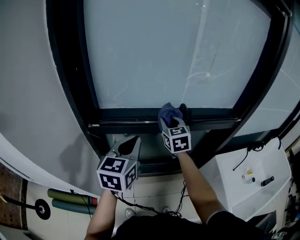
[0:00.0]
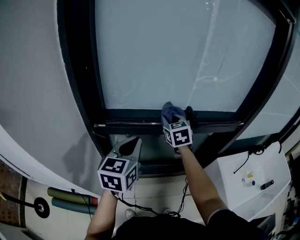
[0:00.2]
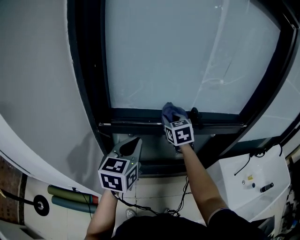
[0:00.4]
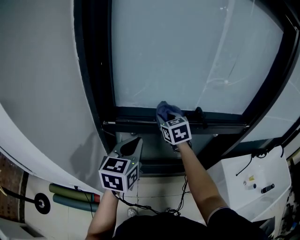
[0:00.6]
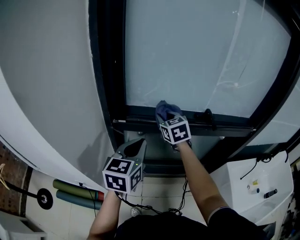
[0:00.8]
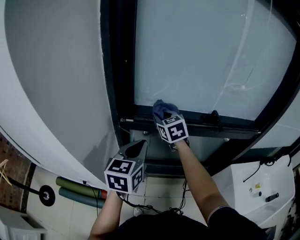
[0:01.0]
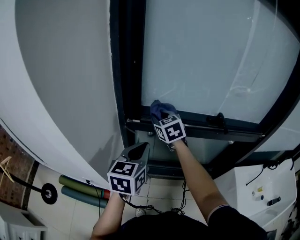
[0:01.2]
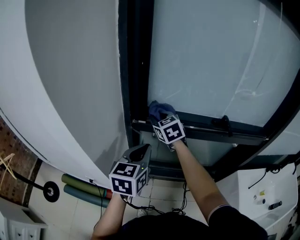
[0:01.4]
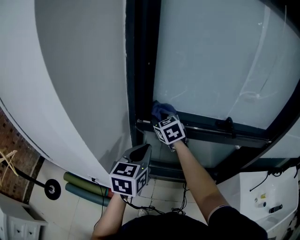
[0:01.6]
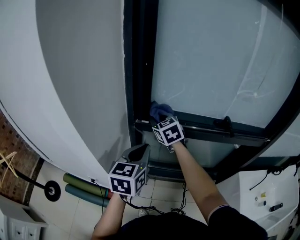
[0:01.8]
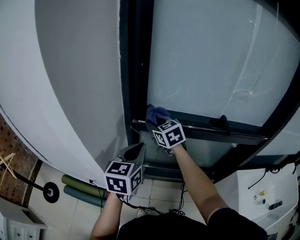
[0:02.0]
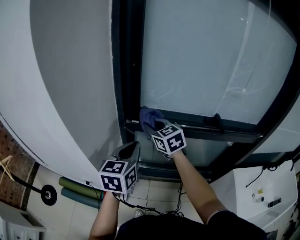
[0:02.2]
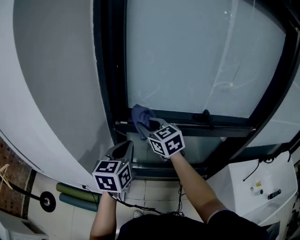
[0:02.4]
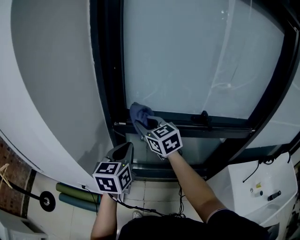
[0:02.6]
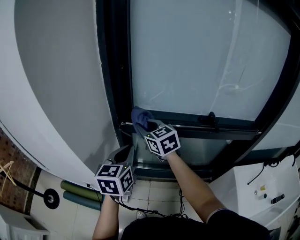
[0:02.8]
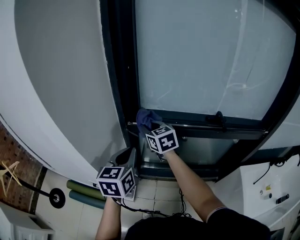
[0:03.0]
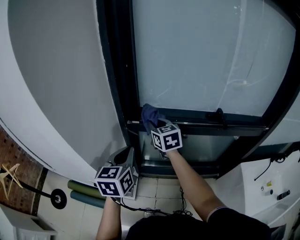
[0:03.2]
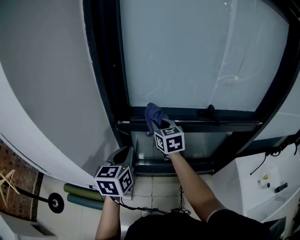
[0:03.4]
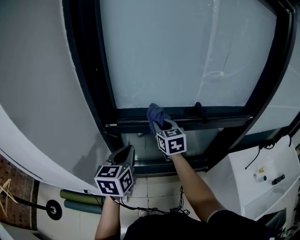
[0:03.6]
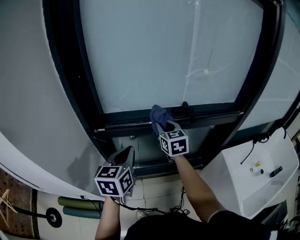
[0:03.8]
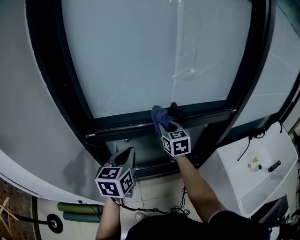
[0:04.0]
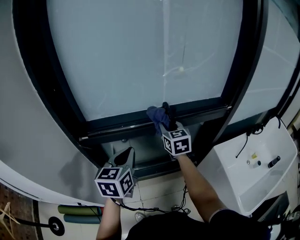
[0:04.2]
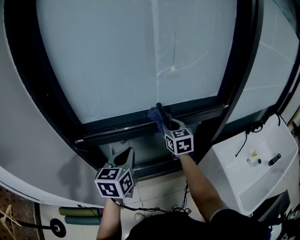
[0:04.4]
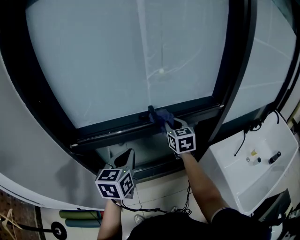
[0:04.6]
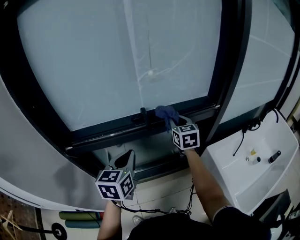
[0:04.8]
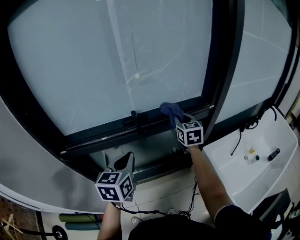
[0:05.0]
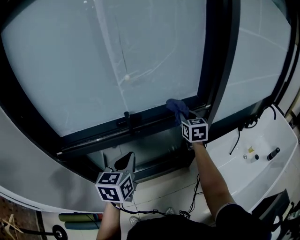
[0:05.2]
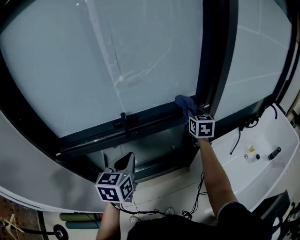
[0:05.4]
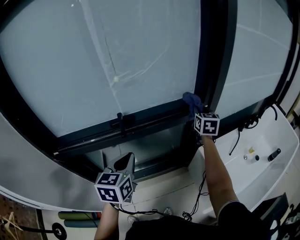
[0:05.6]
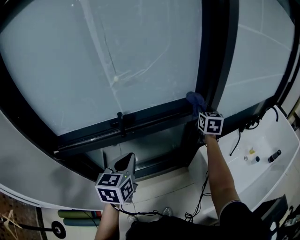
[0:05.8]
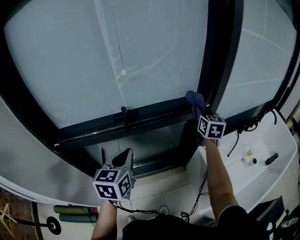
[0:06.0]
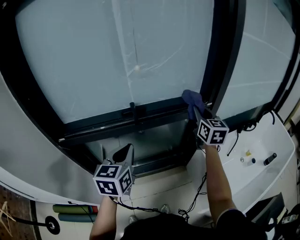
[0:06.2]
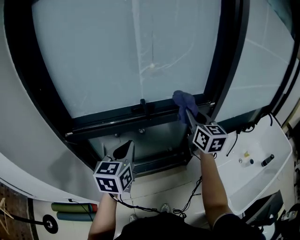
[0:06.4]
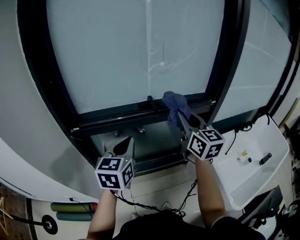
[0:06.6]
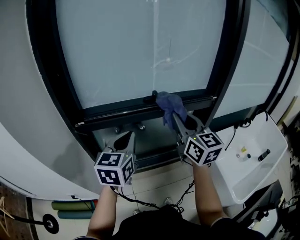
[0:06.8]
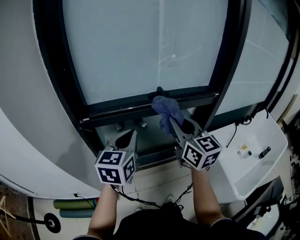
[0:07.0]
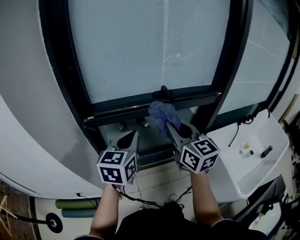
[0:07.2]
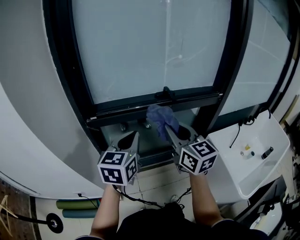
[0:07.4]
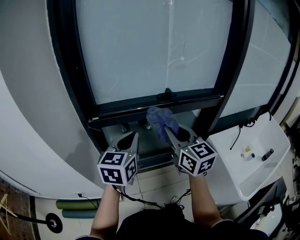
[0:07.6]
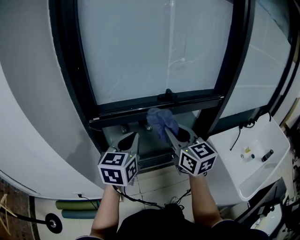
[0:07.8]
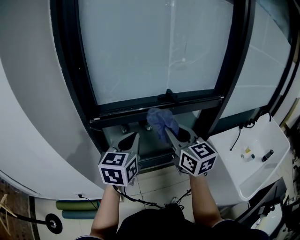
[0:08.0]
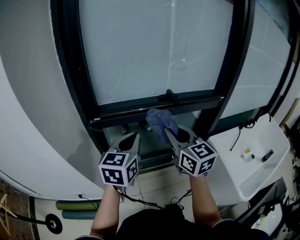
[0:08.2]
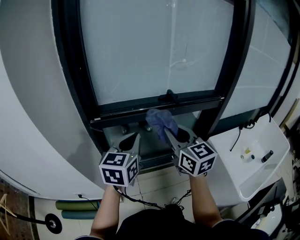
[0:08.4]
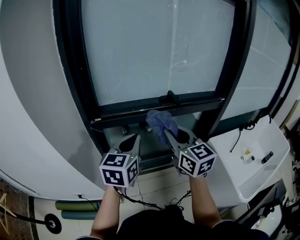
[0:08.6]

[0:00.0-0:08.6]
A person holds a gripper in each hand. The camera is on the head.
0:00.0 to 0:01.4: The right gripper moves to the left, roughly 25 cm, and turns by roughly 30 degrees; the left gripper heads to the left, covering roughly 15 cm.
0:01.4 to 0:02.8: The right gripper moves backward, some 5 cm.
0:02.8 to 0:04.4: The left gripper shifts by approximately 20 cm. Meanwhile the right gripper moves about 35 cm, and rotates approximately 40 degrees.
0:04.4 to 0:05.8: The right gripper heads to the right, covering some 35 cm, and swivels some 20 degrees; the left gripper is displaced to the right by some 15 cm.
0:05.8 to 0:07.2: The left gripper goes approximately 20 cm to the left and backward, while the right gripper heads to the left and backward, covering approximately 50 cm, and changes its angle by approximately 30 degrees.
0:07.2 to 0:08.6: The grippers stay close to where they were, moving slightly.

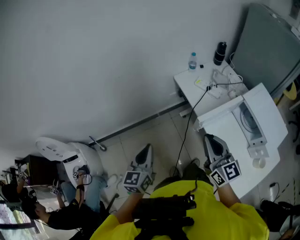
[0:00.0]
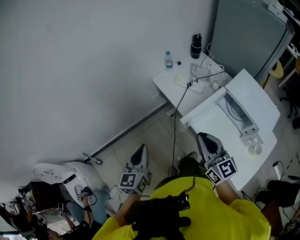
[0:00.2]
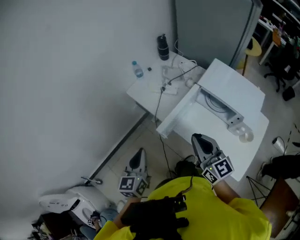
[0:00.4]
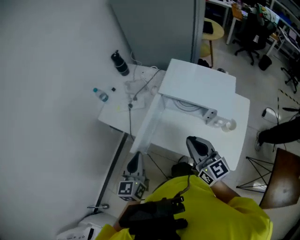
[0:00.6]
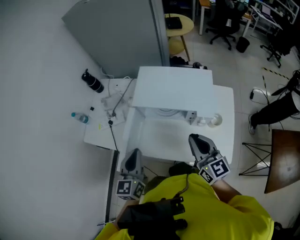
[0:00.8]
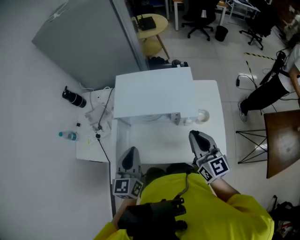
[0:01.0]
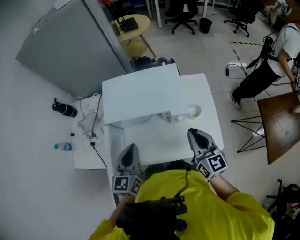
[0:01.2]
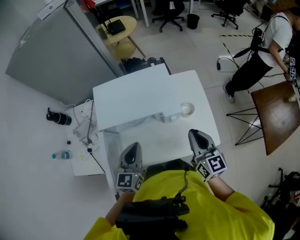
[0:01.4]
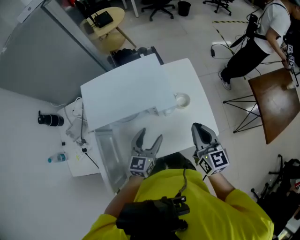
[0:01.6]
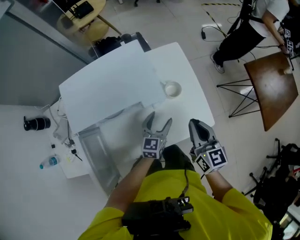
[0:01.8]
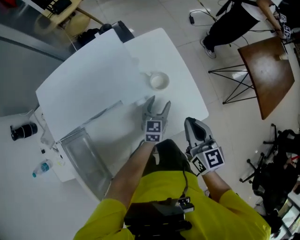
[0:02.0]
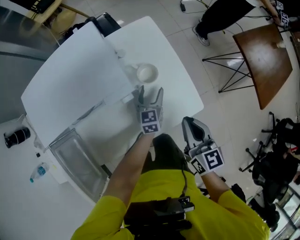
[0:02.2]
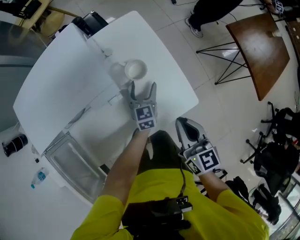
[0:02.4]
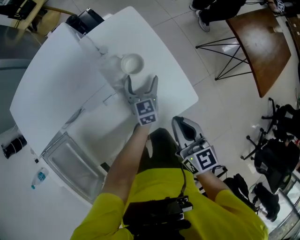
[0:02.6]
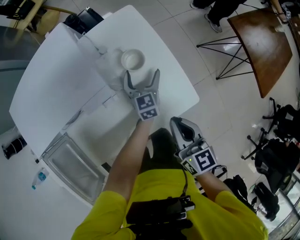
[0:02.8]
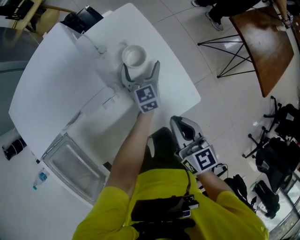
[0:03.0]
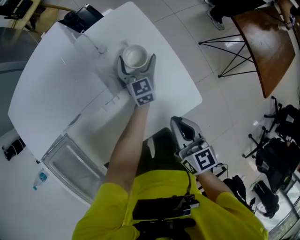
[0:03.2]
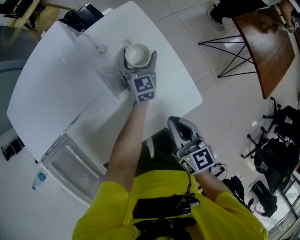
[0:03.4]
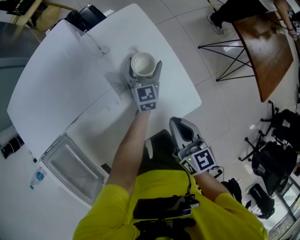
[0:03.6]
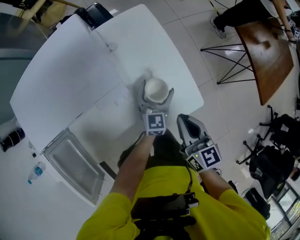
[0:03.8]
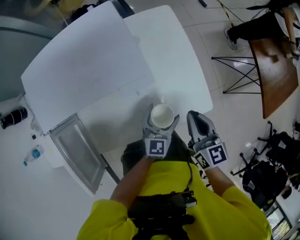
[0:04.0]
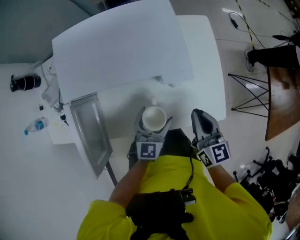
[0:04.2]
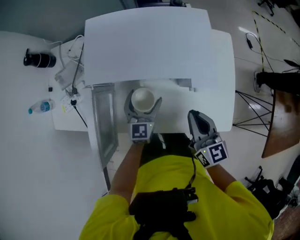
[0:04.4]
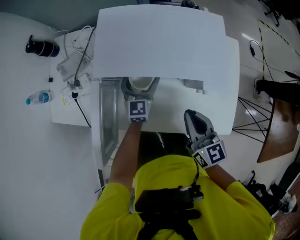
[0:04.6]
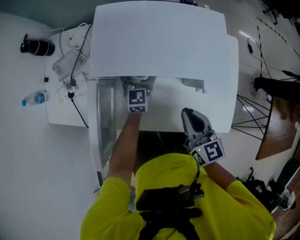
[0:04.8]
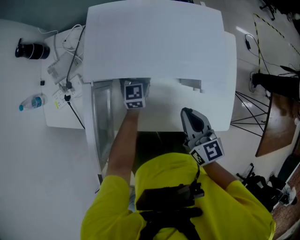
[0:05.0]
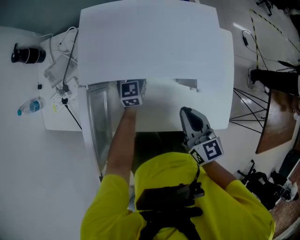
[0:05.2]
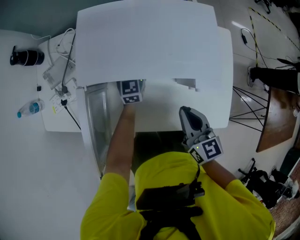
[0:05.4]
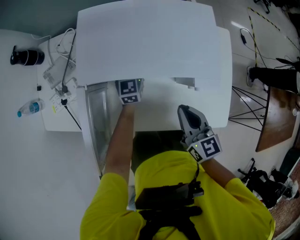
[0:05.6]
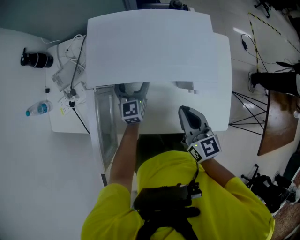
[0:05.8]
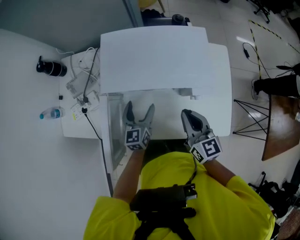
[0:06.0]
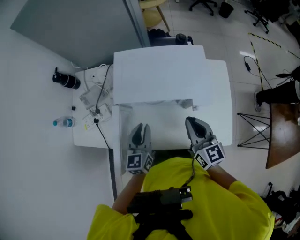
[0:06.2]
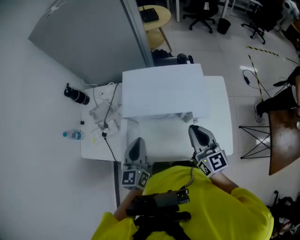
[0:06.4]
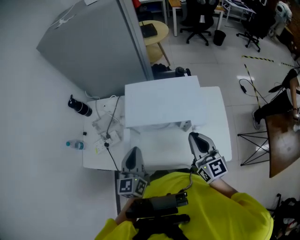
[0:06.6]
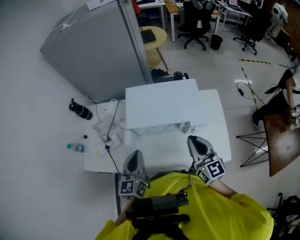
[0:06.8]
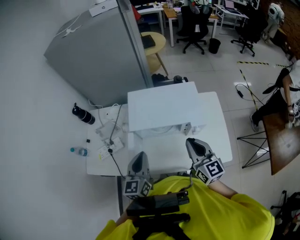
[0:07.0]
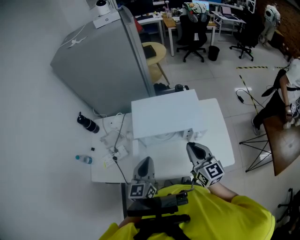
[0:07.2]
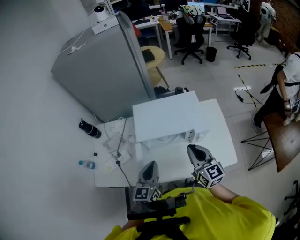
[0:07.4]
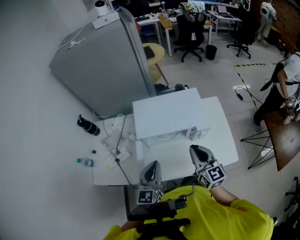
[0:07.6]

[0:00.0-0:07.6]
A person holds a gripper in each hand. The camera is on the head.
0:00.0 to 0:01.6: The two grippers travel together, about 50 cm. The right gripper changes its angle by approximately 80 degrees; the left gripper swivels about 90 degrees, and opens.
0:01.6 to 0:03.0: The right gripper heads downward and to the right, covering approximately 20 cm. Meanwhile the left gripper heads downward, forward and to the right, covering roughly 35 cm, and opens its fingers.
0:03.0 to 0:04.6: The right gripper changes place by some 25 cm, and rotates roughly 30 degrees, while the left gripper changes place by roughly 40 cm, and swivels approximately 20 degrees.
0:04.6 to 0:06.0: The left gripper travels backward by roughly 5 cm.
0:06.0 to 0:07.6: The left gripper shifts roughly 25 cm upward and backward, and closes; the right gripper heads upward, covering some 15 cm.

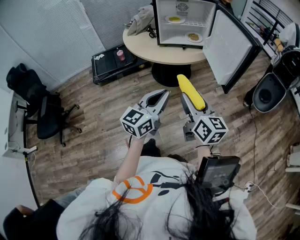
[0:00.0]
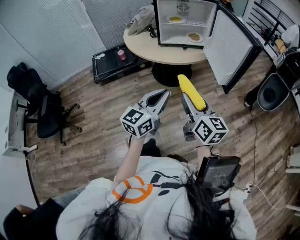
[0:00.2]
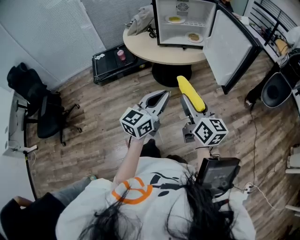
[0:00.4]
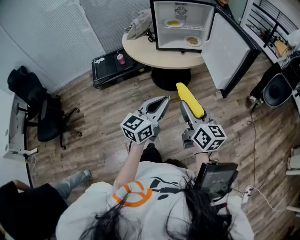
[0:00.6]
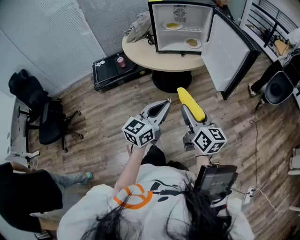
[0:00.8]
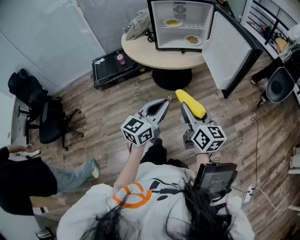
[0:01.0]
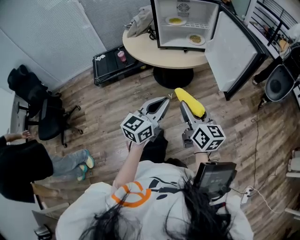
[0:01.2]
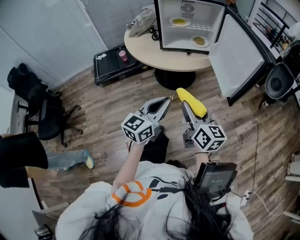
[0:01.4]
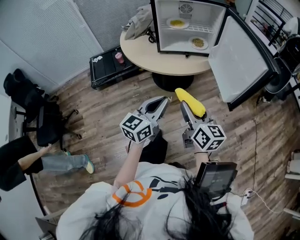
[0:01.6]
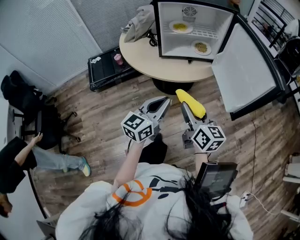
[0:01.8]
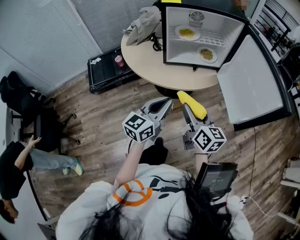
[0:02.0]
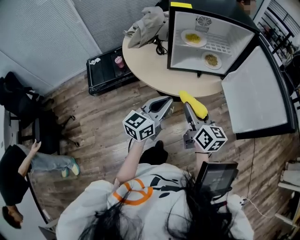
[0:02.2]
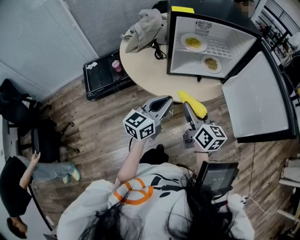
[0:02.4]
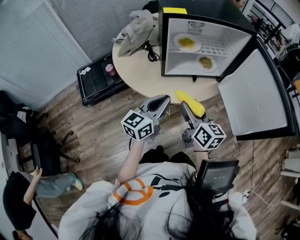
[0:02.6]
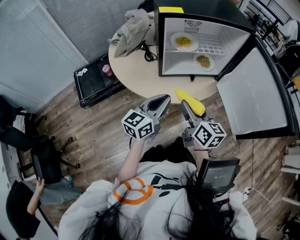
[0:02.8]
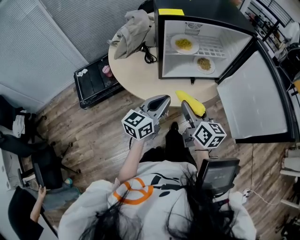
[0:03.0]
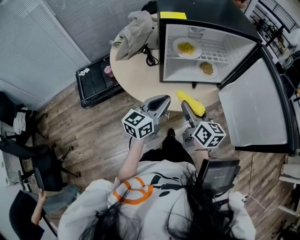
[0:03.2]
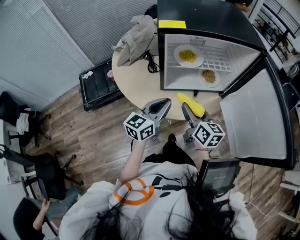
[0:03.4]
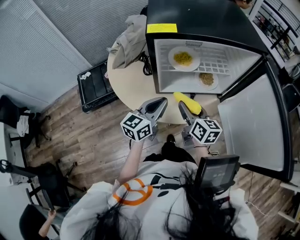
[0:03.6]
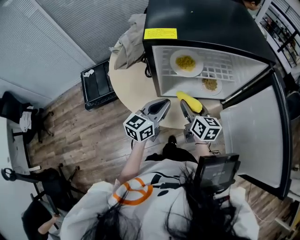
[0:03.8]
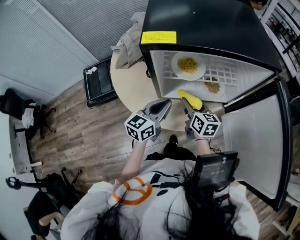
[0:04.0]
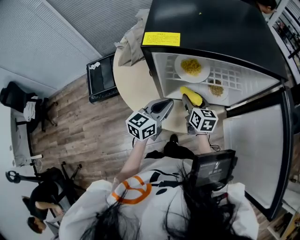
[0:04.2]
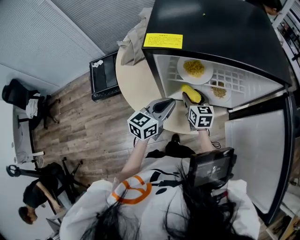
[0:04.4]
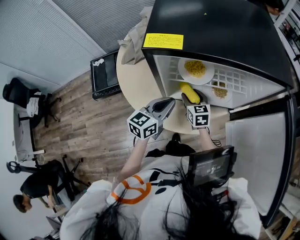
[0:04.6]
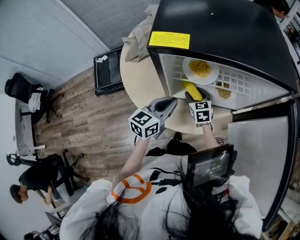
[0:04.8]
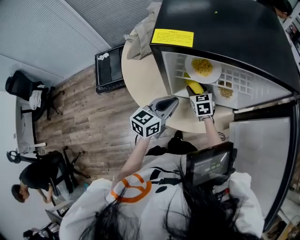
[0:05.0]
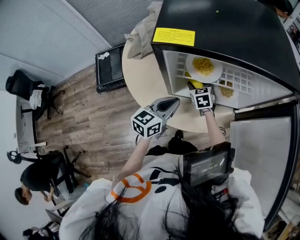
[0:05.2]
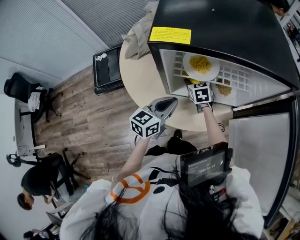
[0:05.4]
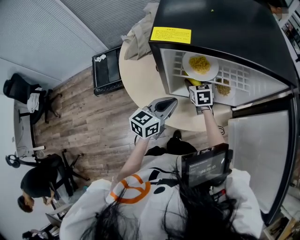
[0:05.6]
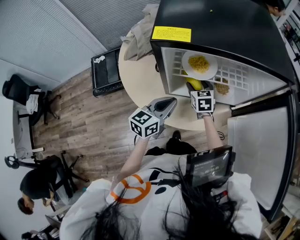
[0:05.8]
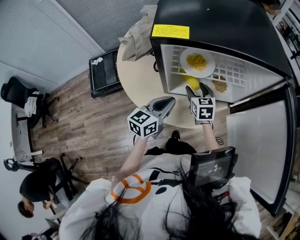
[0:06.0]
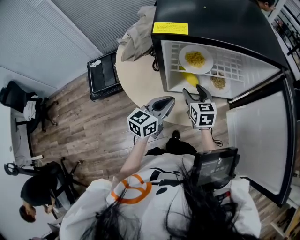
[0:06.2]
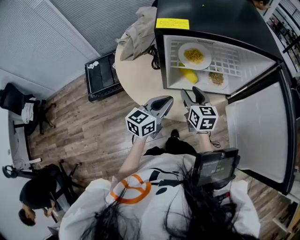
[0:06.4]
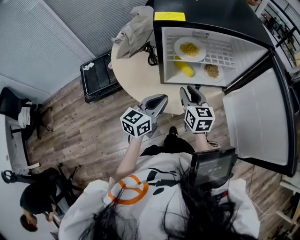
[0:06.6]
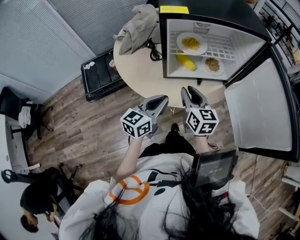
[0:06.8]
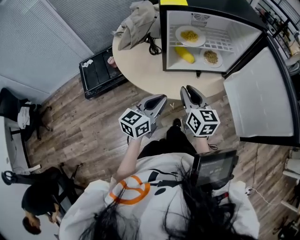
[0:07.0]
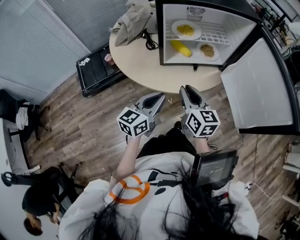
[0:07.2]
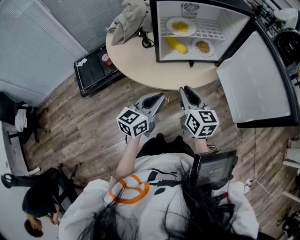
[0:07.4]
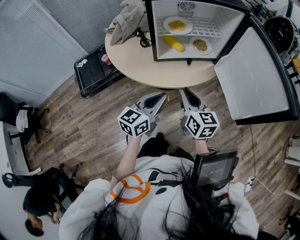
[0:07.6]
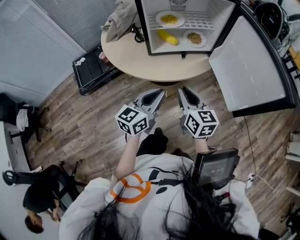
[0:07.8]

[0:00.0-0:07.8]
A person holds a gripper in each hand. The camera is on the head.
0:00.0 to 0:01.6: The grippers both shift forward by roughly 10 cm.
0:01.6 to 0:03.2: Both grippers travel together forward, some 25 cm.
0:03.2 to 0:04.6: The left gripper goes roughly 15 cm forward, while the right gripper moves forward and downward, approximately 25 cm, and turns by roughly 30 degrees.
0:04.6 to 0:06.2: The right gripper moves upward, about 5 cm.
0:06.2 to 0:07.8: The two grippers go about 25 cm backward. The right gripper closes up.
